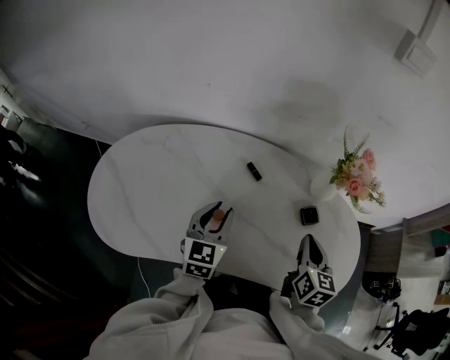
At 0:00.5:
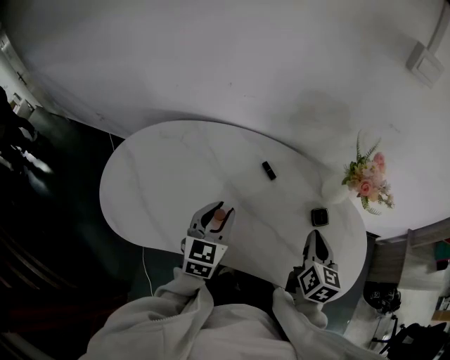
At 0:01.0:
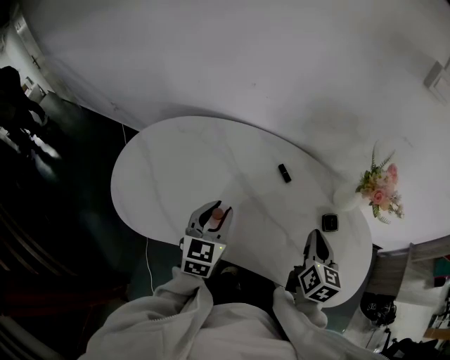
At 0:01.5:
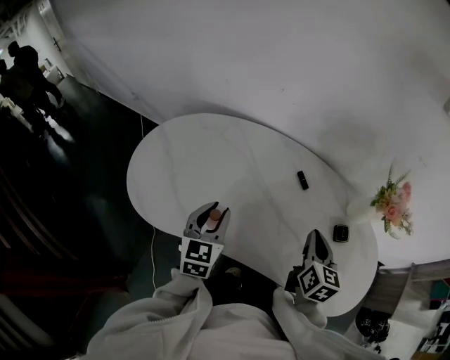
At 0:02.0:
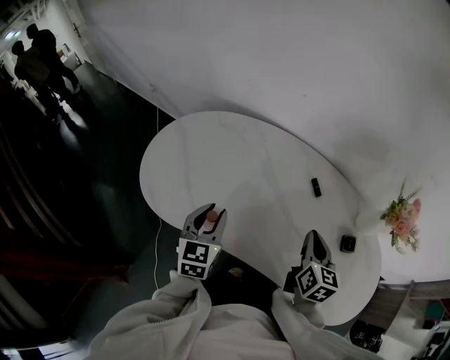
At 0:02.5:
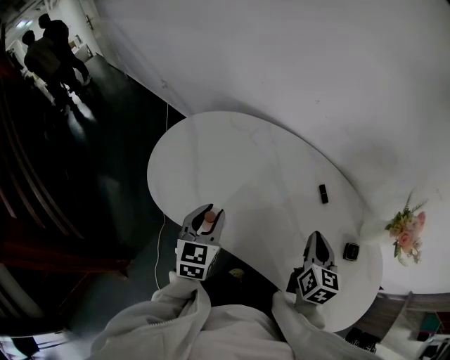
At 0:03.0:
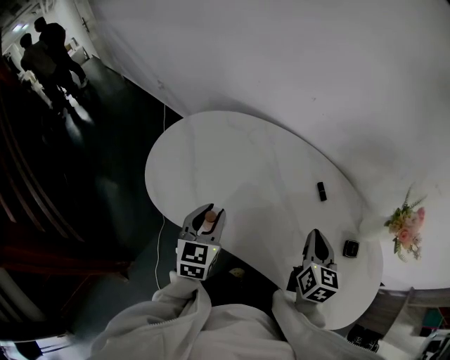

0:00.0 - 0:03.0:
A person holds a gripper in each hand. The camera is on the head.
0:00.0 - 0:01.5: The right gripper travels to the left by about 10 cm. The left gripper heads to the left and backward, covering some 15 cm.
0:01.5 - 0:03.0: The two grippers go roughly 5 cm to the left.

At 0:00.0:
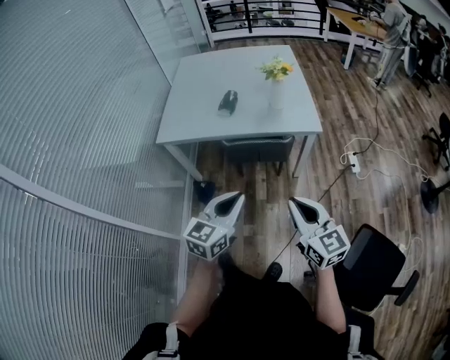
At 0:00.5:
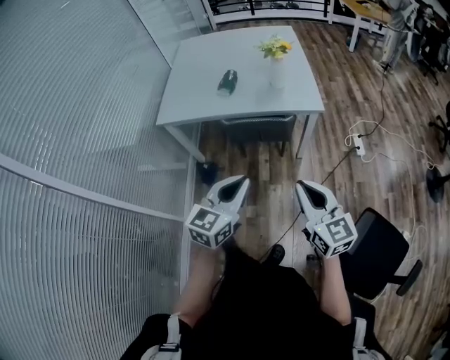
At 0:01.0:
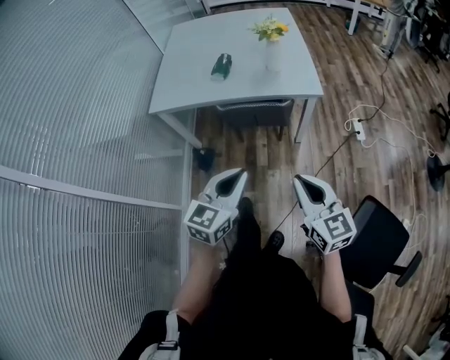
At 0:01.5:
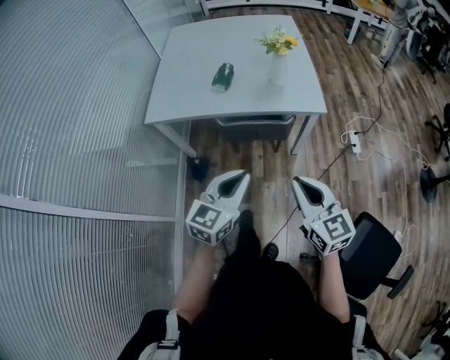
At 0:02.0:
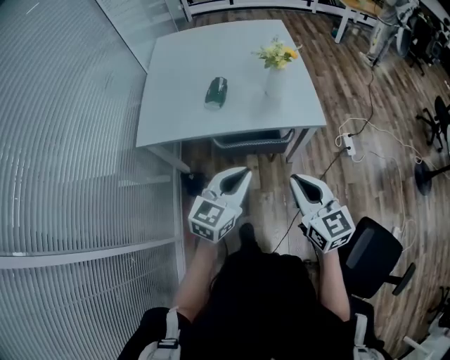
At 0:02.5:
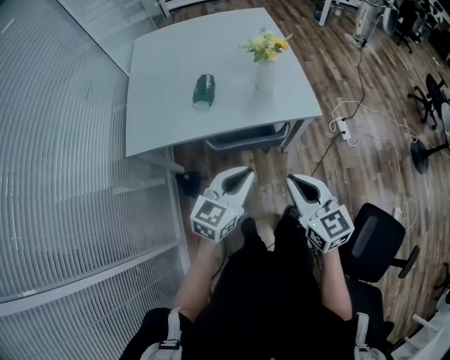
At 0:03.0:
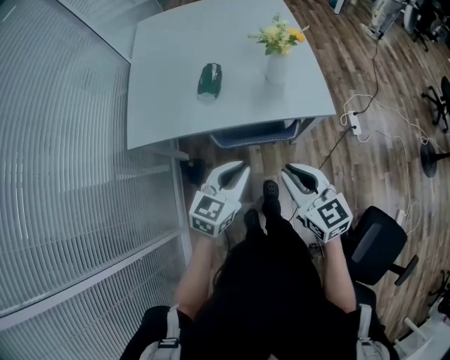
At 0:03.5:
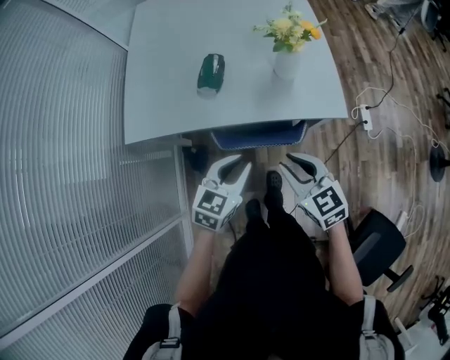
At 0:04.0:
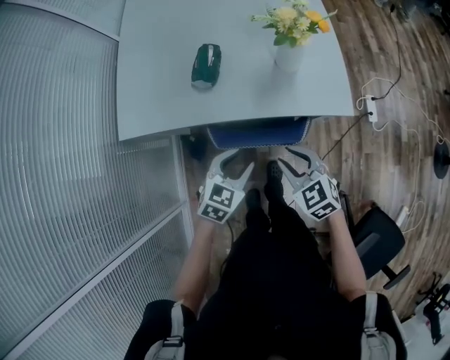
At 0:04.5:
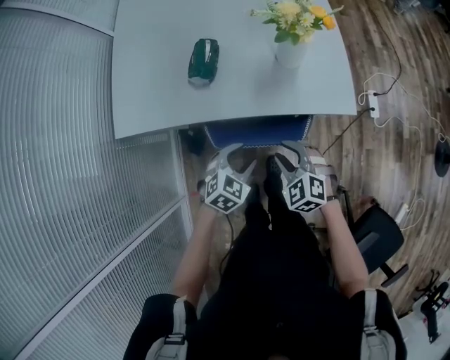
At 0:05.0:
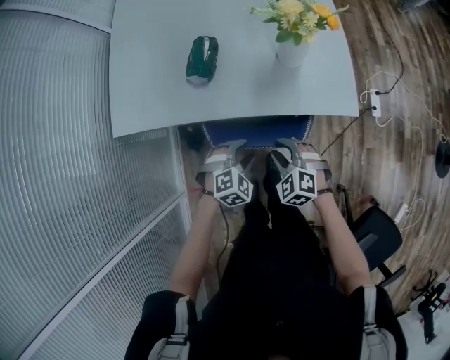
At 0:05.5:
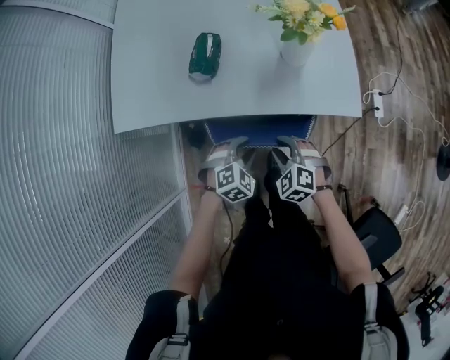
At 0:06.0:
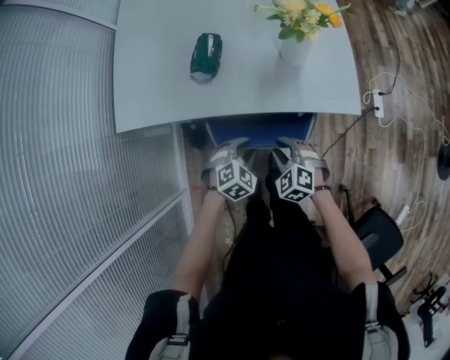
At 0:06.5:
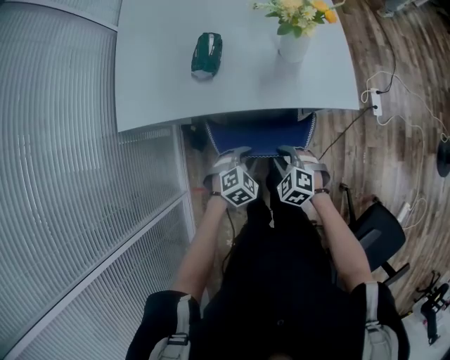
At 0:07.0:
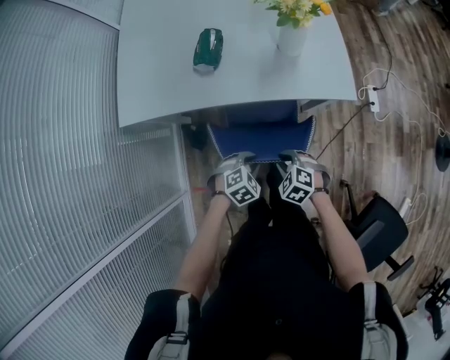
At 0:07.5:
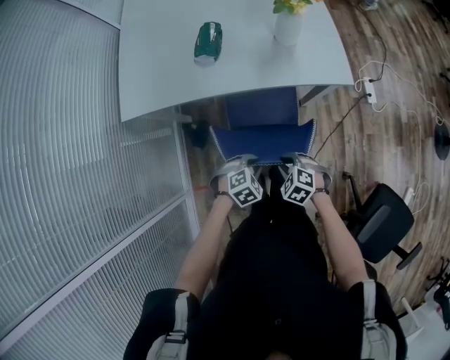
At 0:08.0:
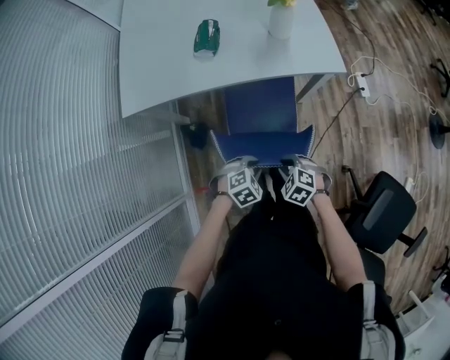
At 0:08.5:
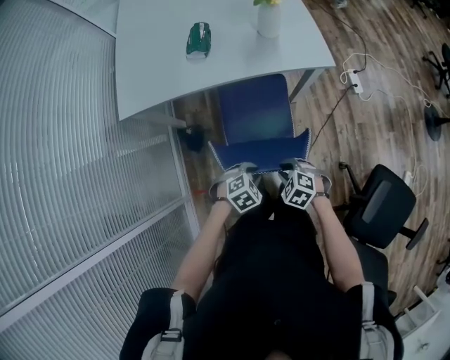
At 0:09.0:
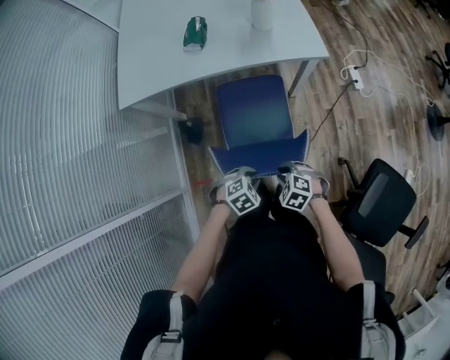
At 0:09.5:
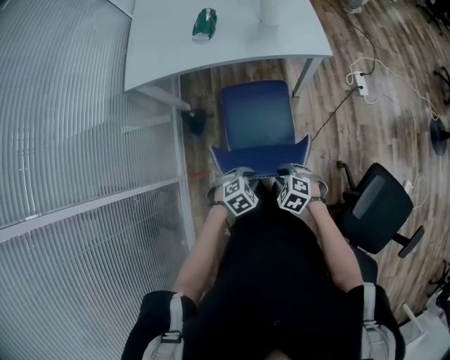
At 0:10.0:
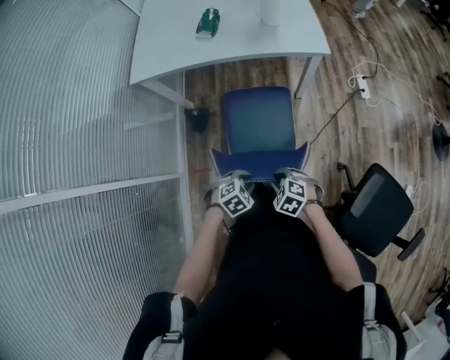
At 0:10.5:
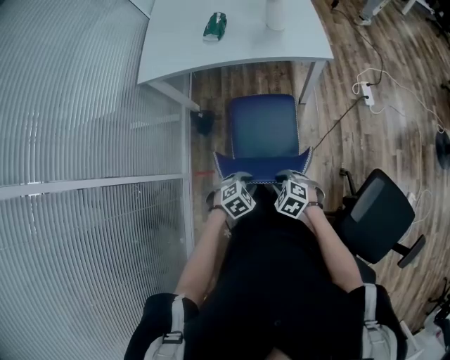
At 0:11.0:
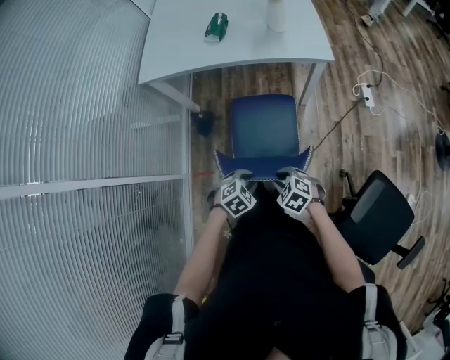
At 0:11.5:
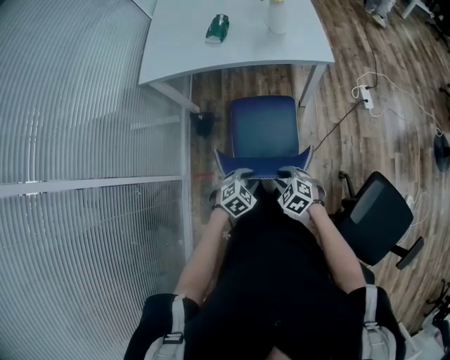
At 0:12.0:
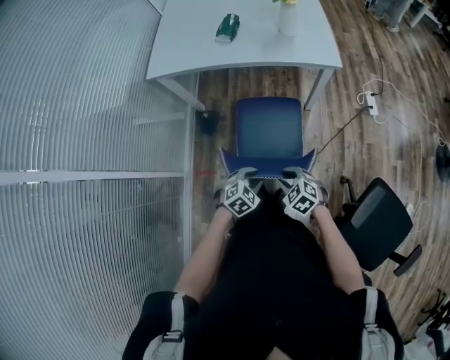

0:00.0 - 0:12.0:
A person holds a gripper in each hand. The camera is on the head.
0:00.0 - 0:02.0: Both grippers travel together forward, about 20 cm.
0:02.0 - 0:04.0: The left gripper is displaced downward and forward by some 25 cm, rotates approximately 30 degrees, and opens up, while the right gripper goes about 30 cm forward and downward, changes its angle by about 30 degrees, and opens up.
0:04.0 - 0:06.0: The two grippers go roughly 10 cm downward. The right gripper rotates about 20 degrees. The left gripper turns by some 30 degrees.
0:06.0 - 0:08.0: Both grippers travel together backward, about 25 cm.
0:08.0 - 0:10.0: The left gripper changes place by approximately 25 cm. Meanwhile the right gripper moves about 20 cm.
0:10.0 - 0:12.0: There are only small adjustments of the grippers.

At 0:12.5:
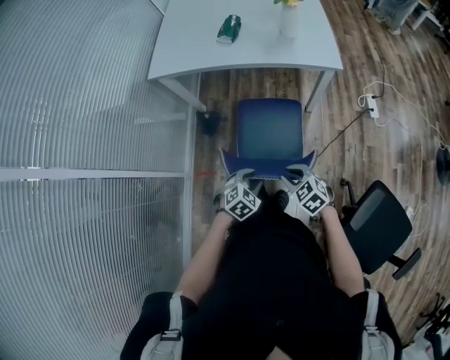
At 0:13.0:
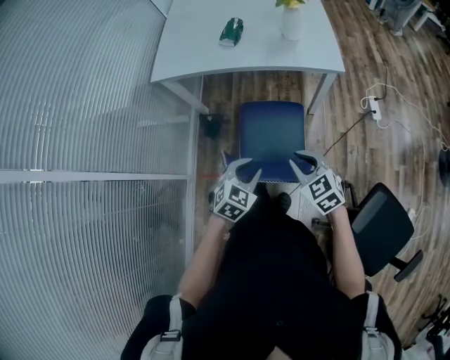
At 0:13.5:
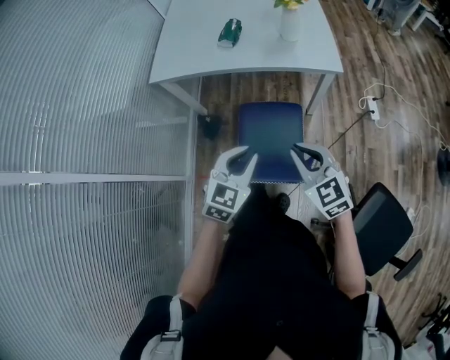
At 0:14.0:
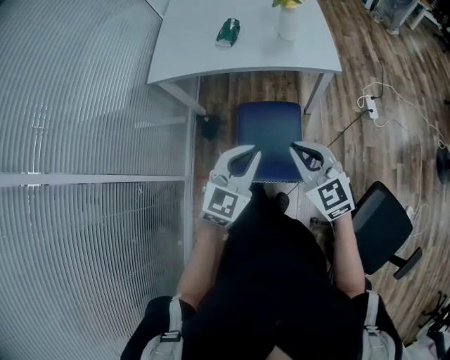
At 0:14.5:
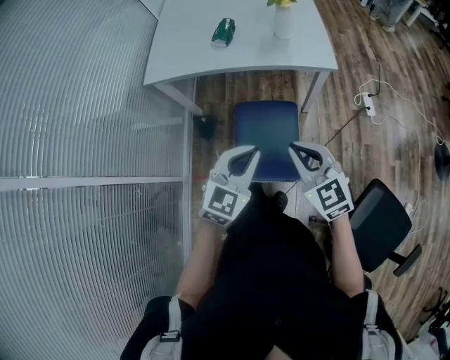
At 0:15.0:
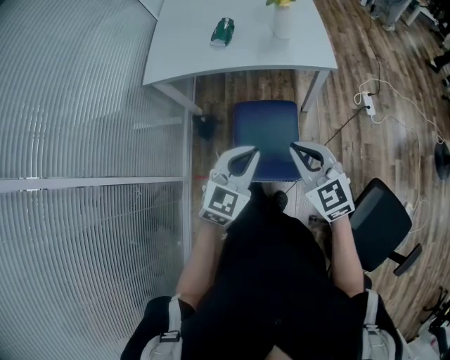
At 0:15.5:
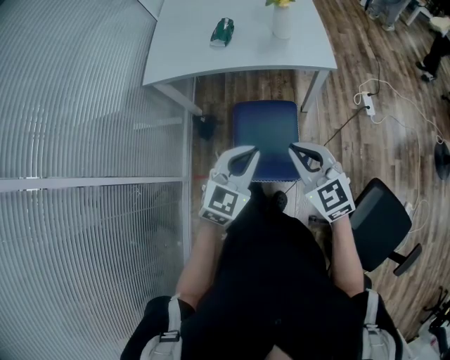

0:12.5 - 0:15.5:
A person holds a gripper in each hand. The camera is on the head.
0:12.5 - 0:14.0: The two grippers go about 25 cm upward. The right gripper changes its angle by approximately 30 degrees. Meanwhile the left gripper tilts its fingers approximately 40 degrees upward, and closes.
0:14.0 - 0:15.5: There are only small adjustments of the grippers.

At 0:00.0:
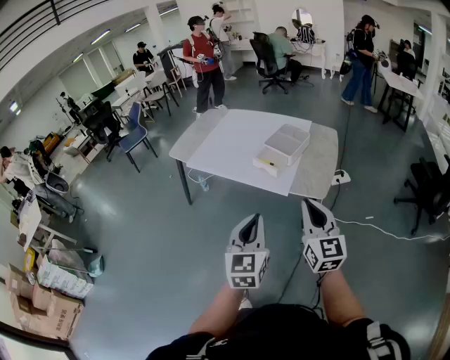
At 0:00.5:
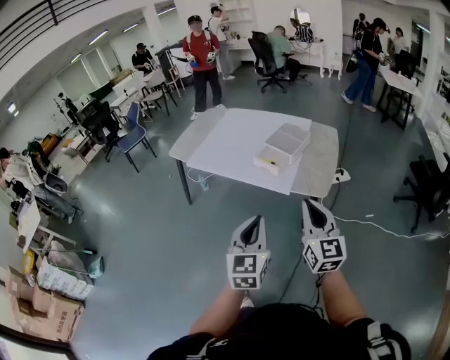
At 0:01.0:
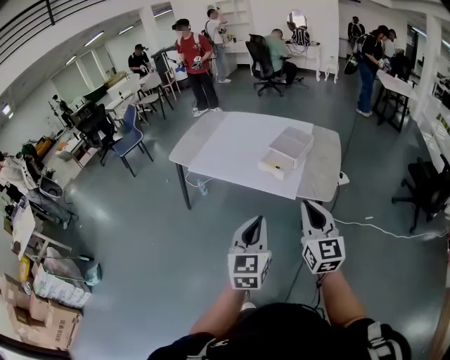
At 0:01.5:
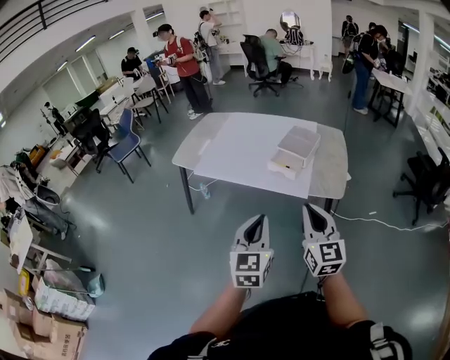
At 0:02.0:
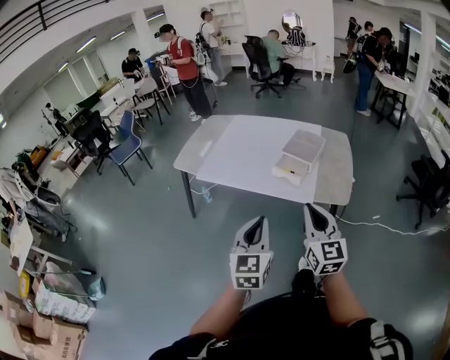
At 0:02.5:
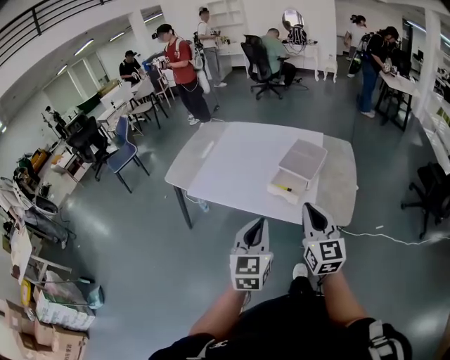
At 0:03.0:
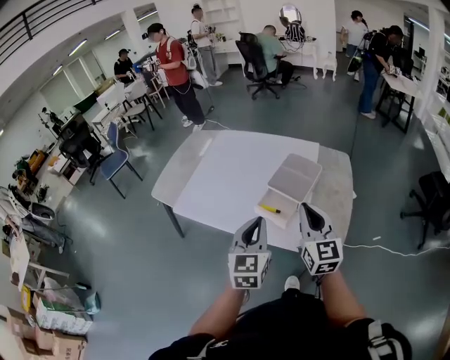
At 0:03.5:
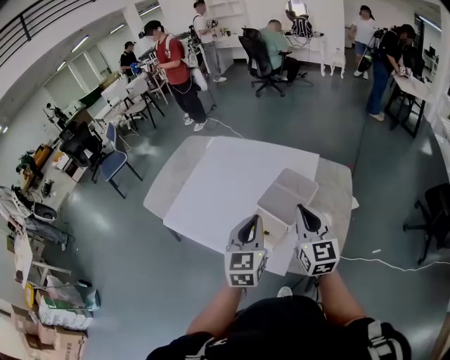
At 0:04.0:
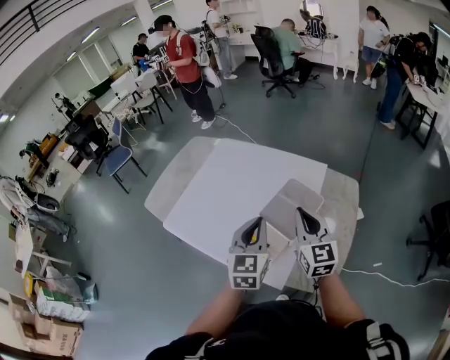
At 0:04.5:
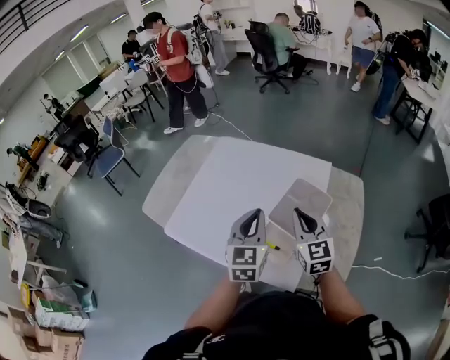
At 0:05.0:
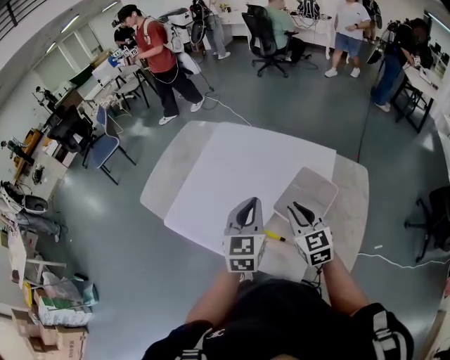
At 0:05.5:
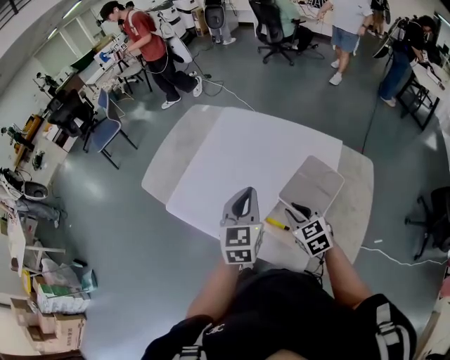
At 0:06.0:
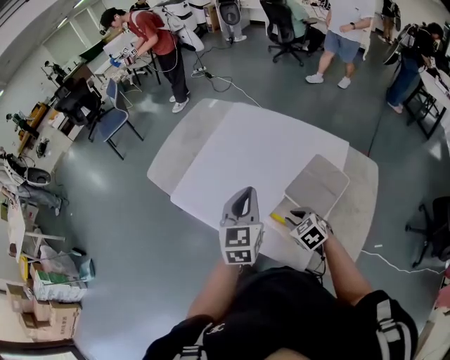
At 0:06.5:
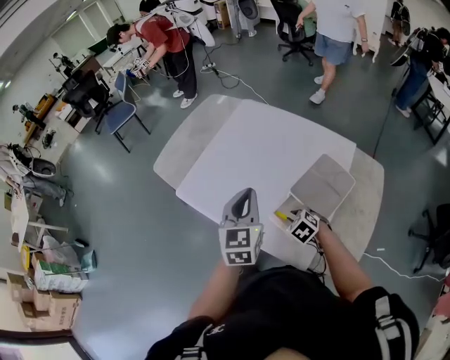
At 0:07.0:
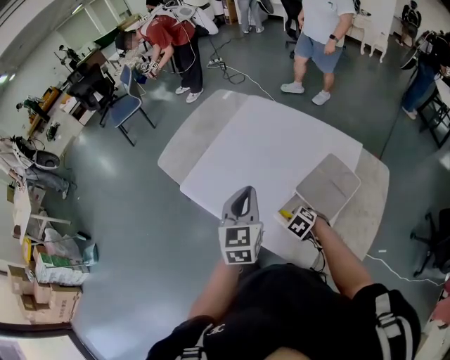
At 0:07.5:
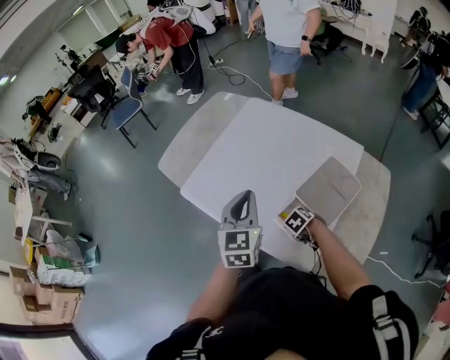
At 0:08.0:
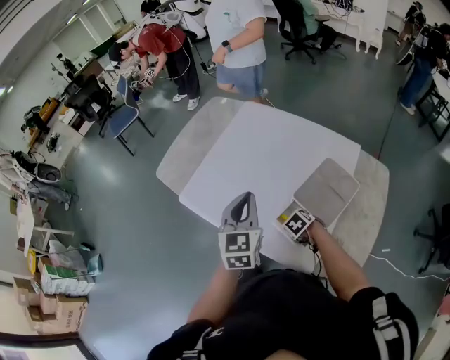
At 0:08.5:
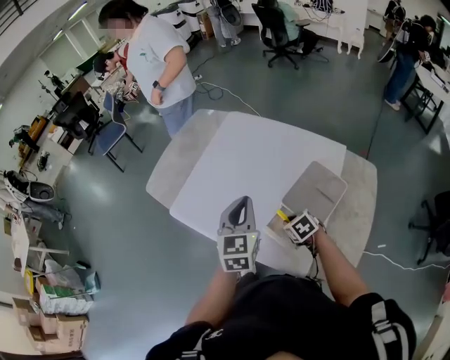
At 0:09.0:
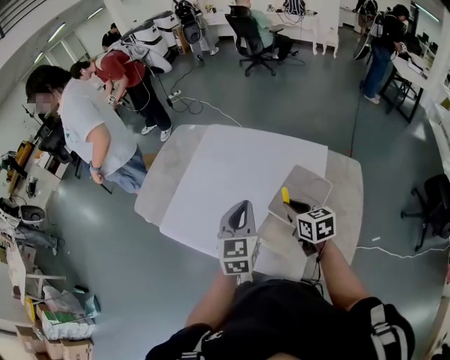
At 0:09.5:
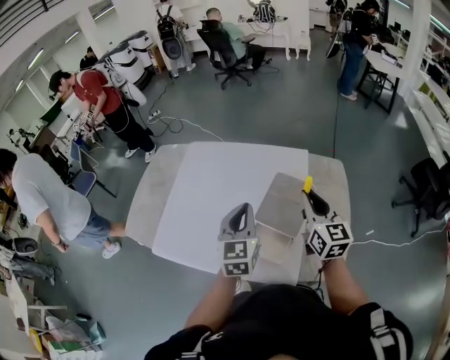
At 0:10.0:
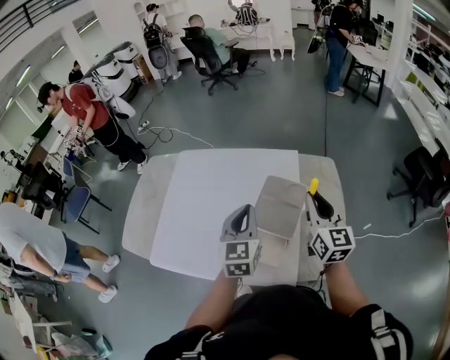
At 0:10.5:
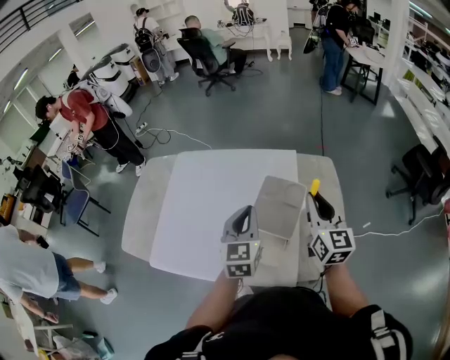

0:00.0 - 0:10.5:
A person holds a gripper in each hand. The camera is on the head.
0:00.0 - 0:02.0: Both grippers move to the left and forward, about 15 cm.
0:02.0 - 0:04.0: The pair of grippers is taken forward, some 50 cm.
0:04.0 - 0:06.5: The left gripper heads to the left, covering approximately 15 cm. The right gripper is displaced downward and to the left by some 30 cm, and angles its fingers downward, by roughly 60 degrees.
0:06.5 - 0:08.5: The right gripper rotates some 20 degrees.
0:08.5 - 0:10.5: The right gripper moves upward, some 30 cm, and angles its fingers upward, by roughly 60 degrees. Meanwhile the left gripper changes place by some 15 cm, and swivels roughly 20 degrees.
